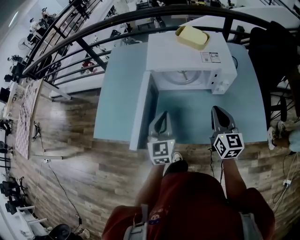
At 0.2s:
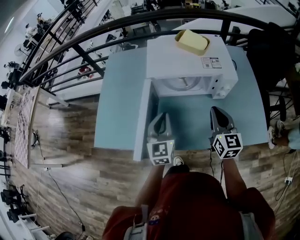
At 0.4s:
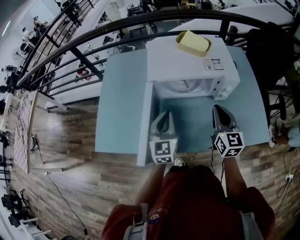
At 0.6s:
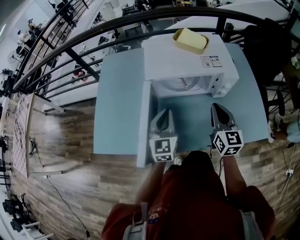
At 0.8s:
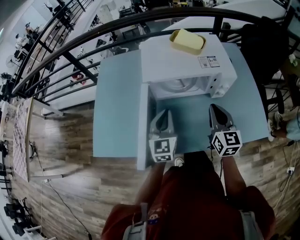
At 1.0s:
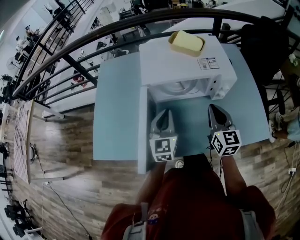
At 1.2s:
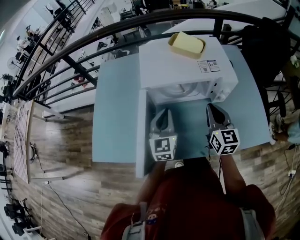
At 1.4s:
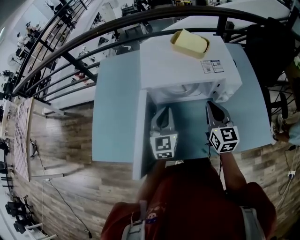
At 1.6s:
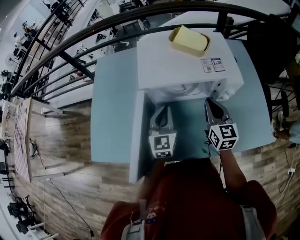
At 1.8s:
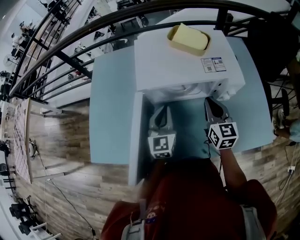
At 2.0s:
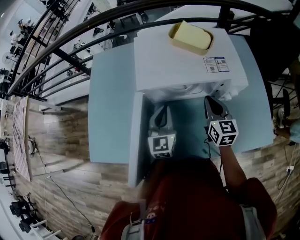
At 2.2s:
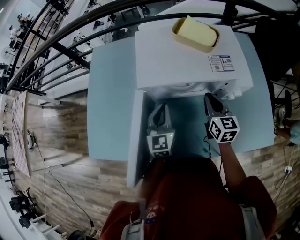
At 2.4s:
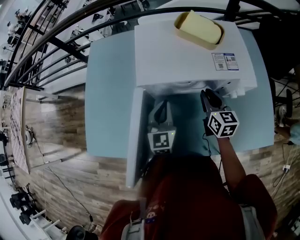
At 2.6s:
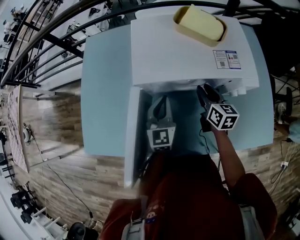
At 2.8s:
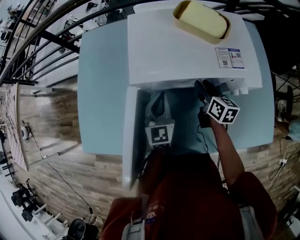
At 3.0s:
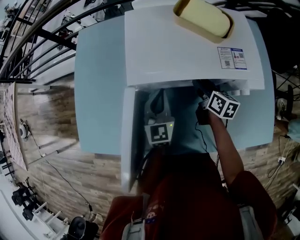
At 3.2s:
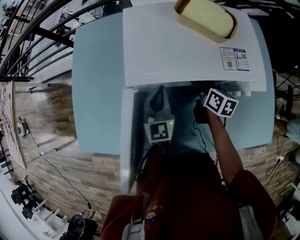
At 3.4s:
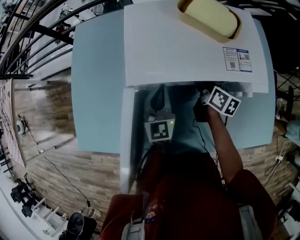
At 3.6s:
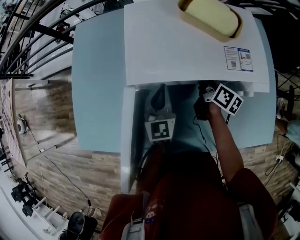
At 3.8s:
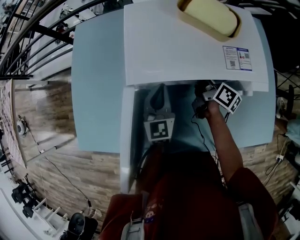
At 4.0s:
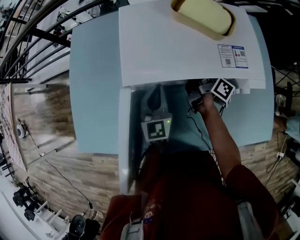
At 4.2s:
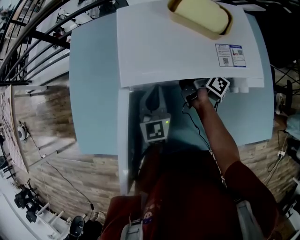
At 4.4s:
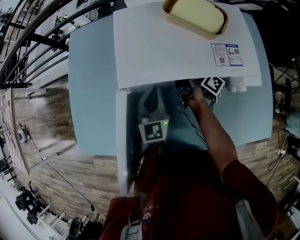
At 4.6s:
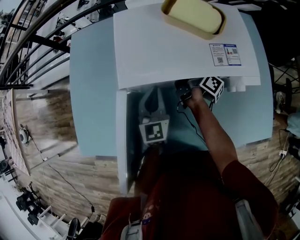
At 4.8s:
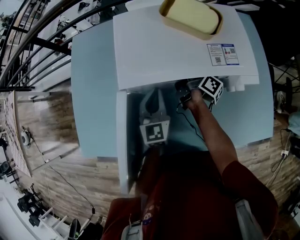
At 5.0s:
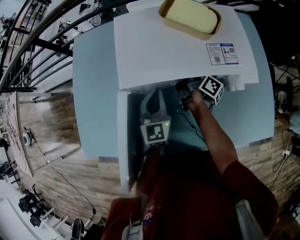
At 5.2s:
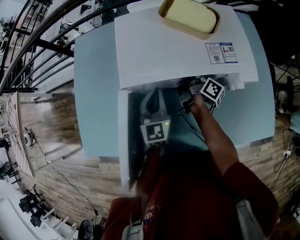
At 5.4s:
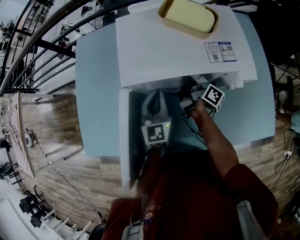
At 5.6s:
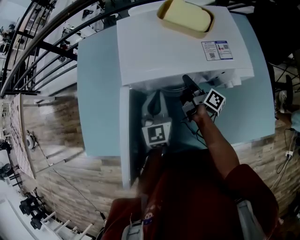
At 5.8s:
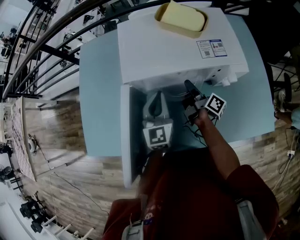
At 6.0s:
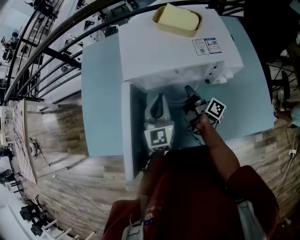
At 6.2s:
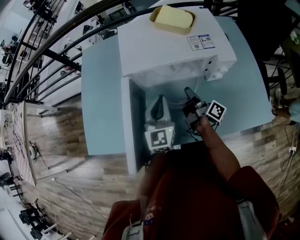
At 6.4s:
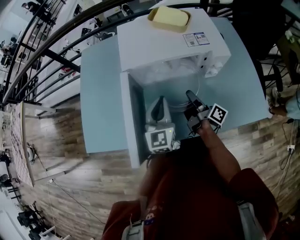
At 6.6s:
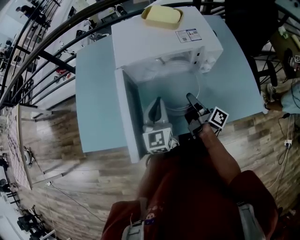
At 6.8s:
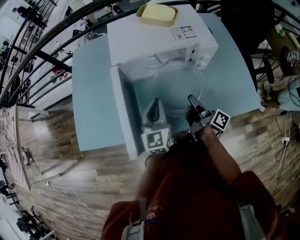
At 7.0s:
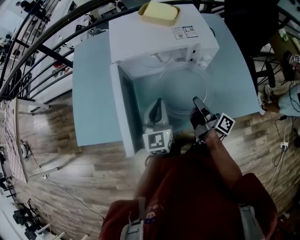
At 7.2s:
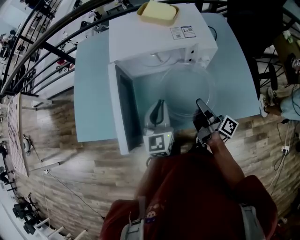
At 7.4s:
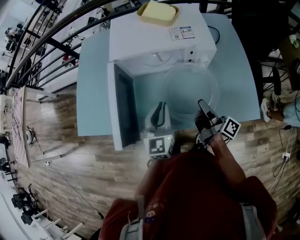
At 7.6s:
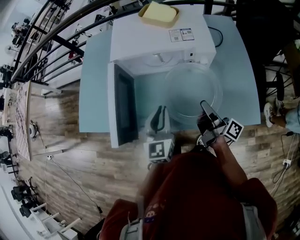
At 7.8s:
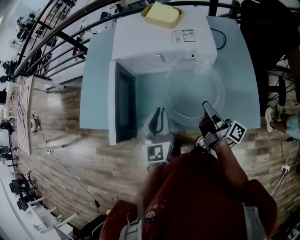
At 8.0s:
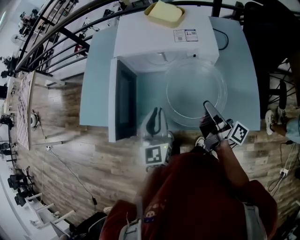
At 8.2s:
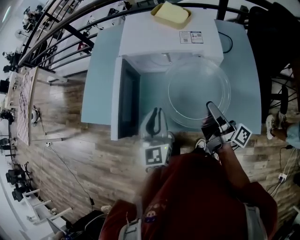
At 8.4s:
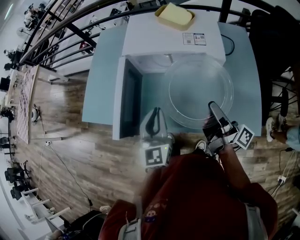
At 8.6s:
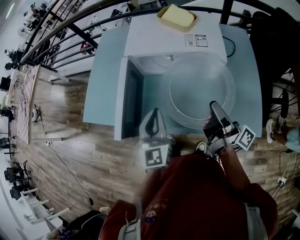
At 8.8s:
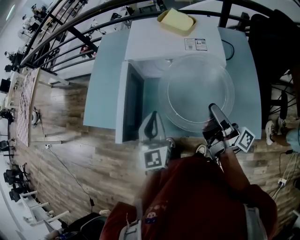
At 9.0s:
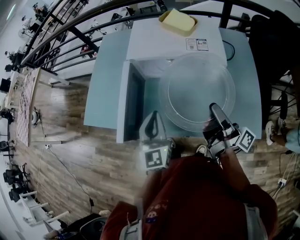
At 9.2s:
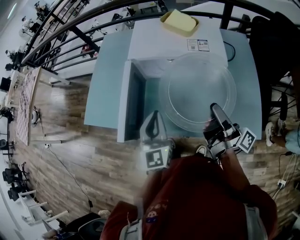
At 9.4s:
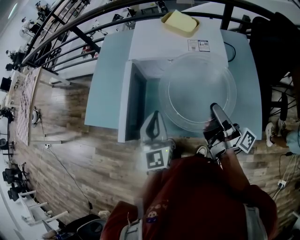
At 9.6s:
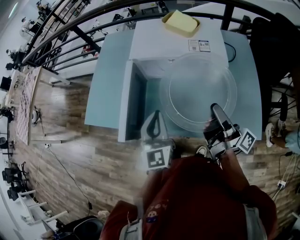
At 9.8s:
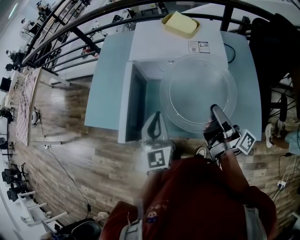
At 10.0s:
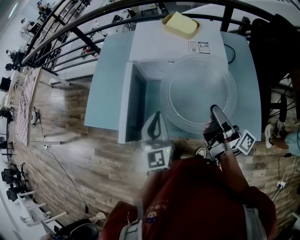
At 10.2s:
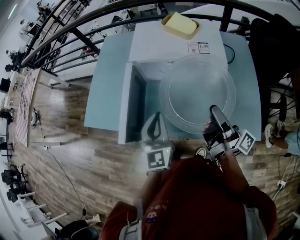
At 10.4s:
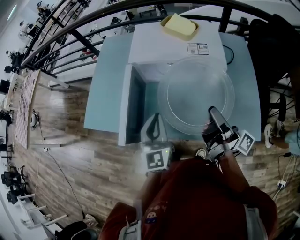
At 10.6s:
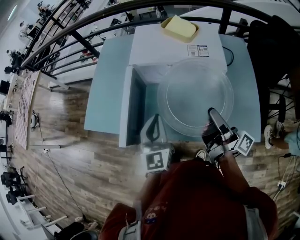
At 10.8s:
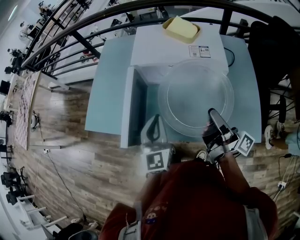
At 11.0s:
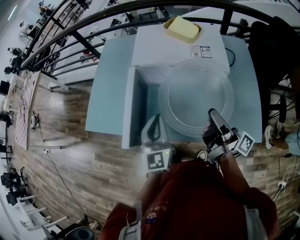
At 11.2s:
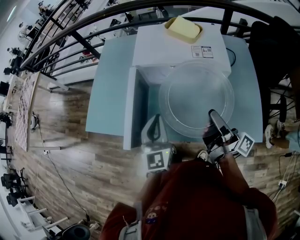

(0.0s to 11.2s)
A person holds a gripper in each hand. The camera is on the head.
0.0s - 1.6s: The two grippers go roughly 15 cm forward.
1.6s - 3.2s: The left gripper shifts about 15 cm forward and downward, while the right gripper is displaced downward and forward by roughly 20 cm, rotates some 40 degrees, and opens.
3.2s - 4.8s: The right gripper is displaced forward by approximately 5 cm, rotates around the line of its fingers by some 40 degrees, clockwise from behind, and closes.
4.8s - 6.4s: The left gripper heads backward and upward, covering approximately 15 cm. Meanwhile the right gripper goes roughly 25 cm backward.
6.4s - 8.0s: The right gripper moves to the right, backward and upward, some 20 cm. The left gripper shifts roughly 15 cm backward and to the right.
8.0s - 9.6s: The right gripper moves upward, roughly 10 cm, while the left gripper shifts by some 5 cm.
9.6s - 11.2s: The grippers move only a little.

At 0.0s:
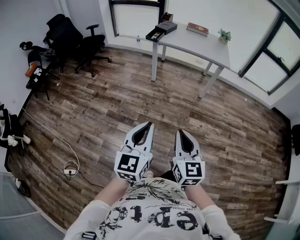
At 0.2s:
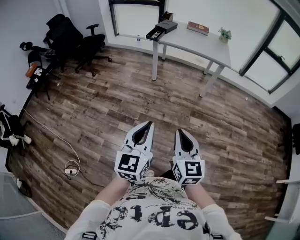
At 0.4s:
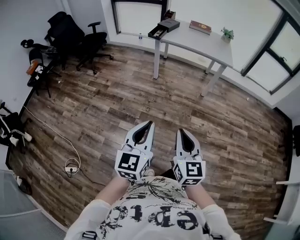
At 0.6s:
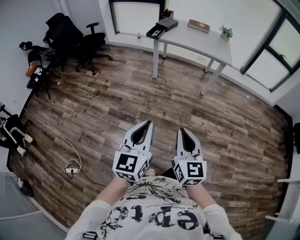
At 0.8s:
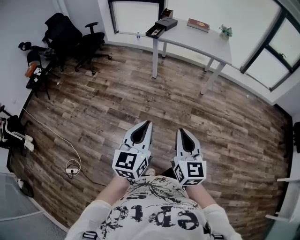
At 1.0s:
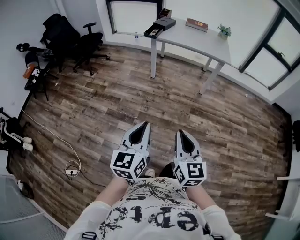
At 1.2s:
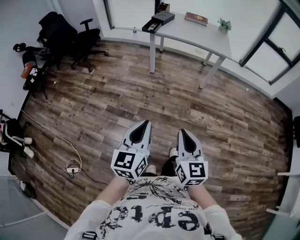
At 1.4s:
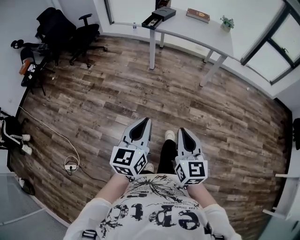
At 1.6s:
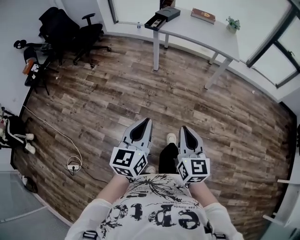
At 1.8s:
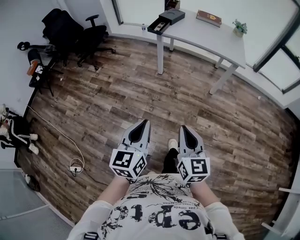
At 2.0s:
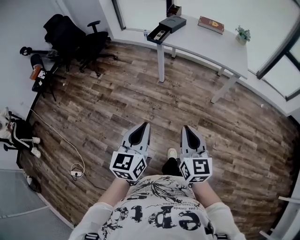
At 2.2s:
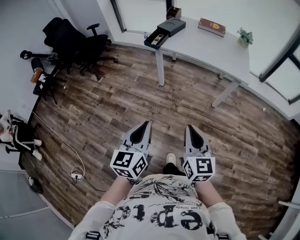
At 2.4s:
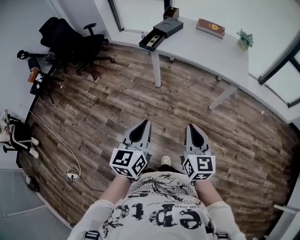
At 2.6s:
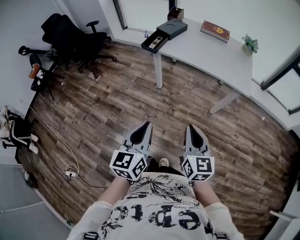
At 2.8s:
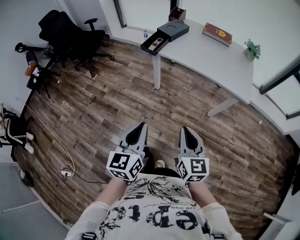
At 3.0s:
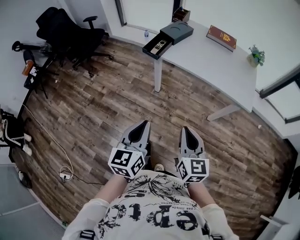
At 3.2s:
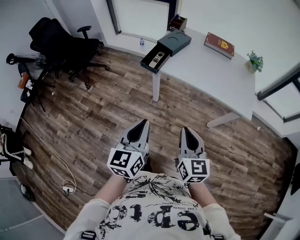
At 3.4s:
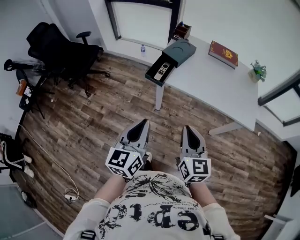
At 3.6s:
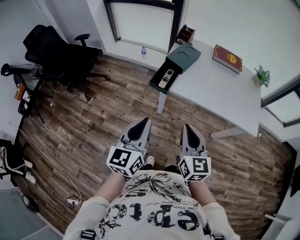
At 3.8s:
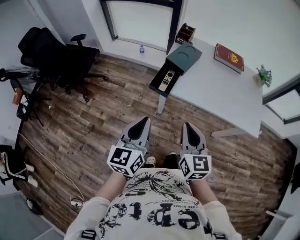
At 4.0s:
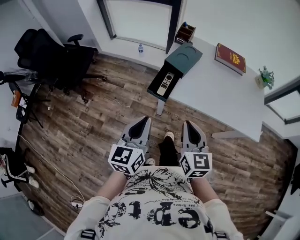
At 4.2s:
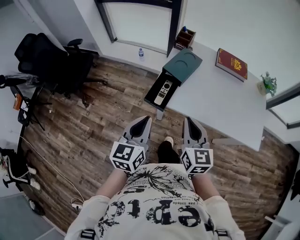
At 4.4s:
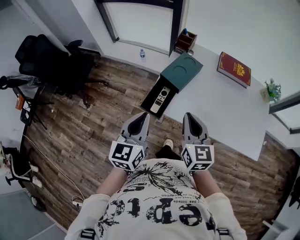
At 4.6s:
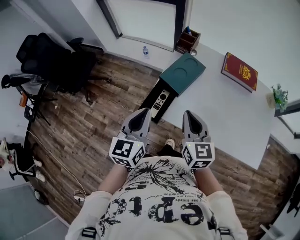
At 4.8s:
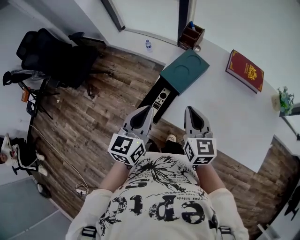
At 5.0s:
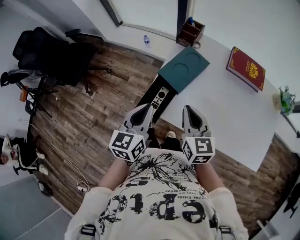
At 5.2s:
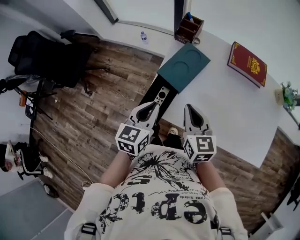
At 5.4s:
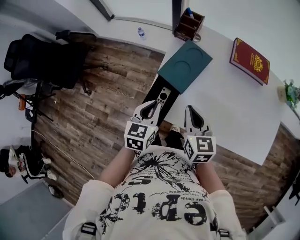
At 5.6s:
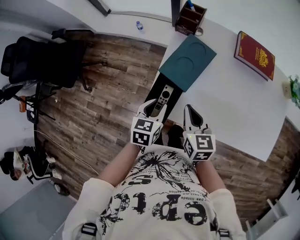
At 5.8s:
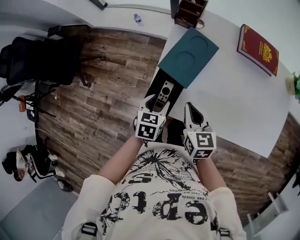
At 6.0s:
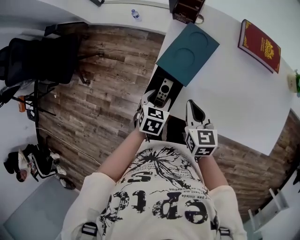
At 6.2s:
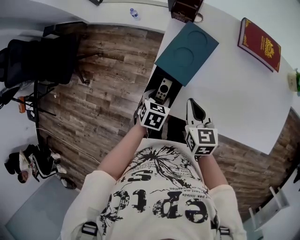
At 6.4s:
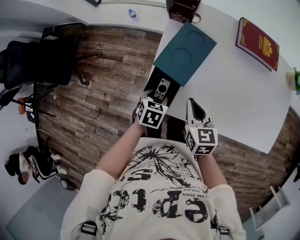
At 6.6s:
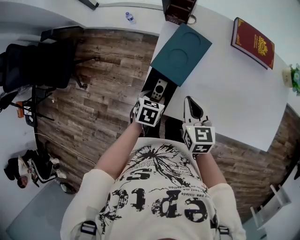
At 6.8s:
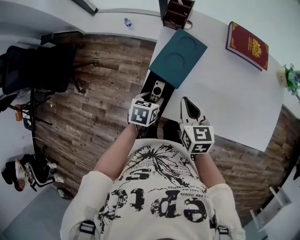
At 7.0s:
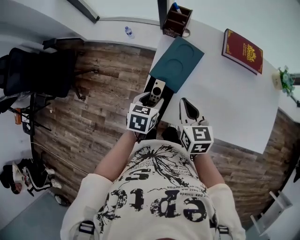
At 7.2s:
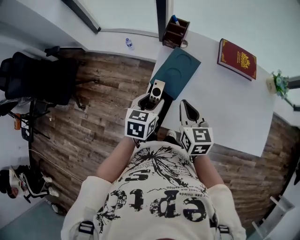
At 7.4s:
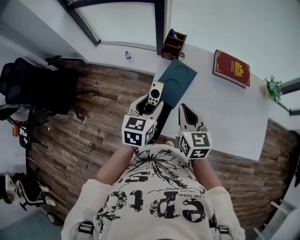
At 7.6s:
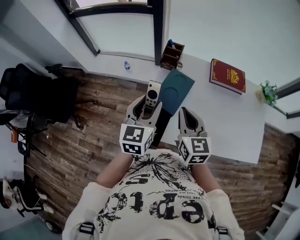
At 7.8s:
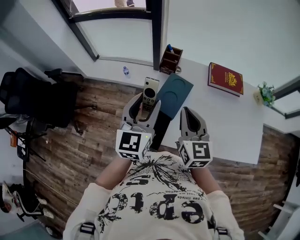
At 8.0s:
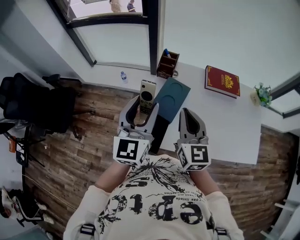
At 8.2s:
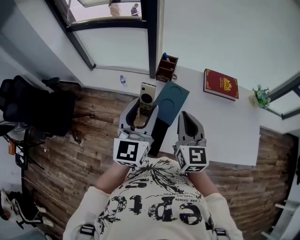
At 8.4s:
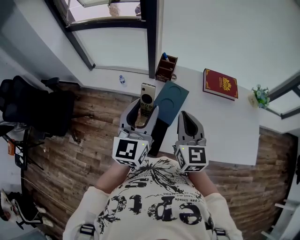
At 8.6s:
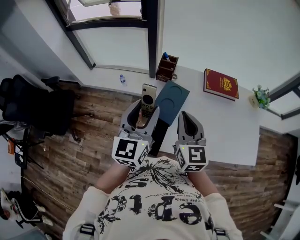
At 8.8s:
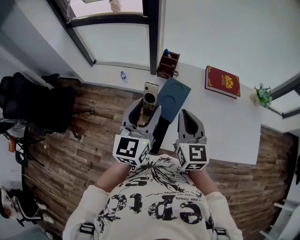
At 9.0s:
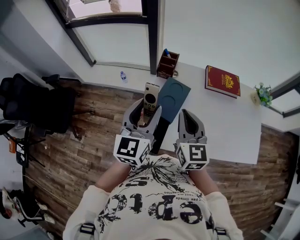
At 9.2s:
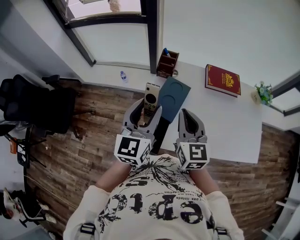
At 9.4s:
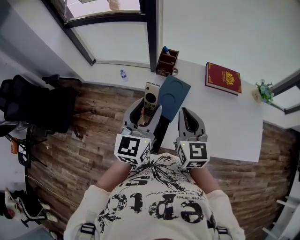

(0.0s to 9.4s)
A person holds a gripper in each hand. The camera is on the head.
0.0s - 1.6s: Both grippers move forward, roughly 10 cm.
1.6s - 3.2s: The two grippers travel together, forward, some 50 cm.
3.2s - 4.8s: The two grippers travel together, forward, some 50 cm.
4.8s - 6.2s: The left gripper goes about 25 cm downward, angles its fingers downward, by approximately 50 degrees, and opens. The right gripper travels downward by about 15 cm, and rotates some 20 degrees.
6.2s - 7.8s: The left gripper shifts some 35 cm upward, and tilts its fingers about 60 degrees upward, while the right gripper travels upward by some 20 cm, and changes its angle by roughly 30 degrees.
7.8s - 9.4s: The grippers stay close to where they were, moving slightly.

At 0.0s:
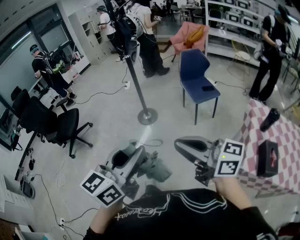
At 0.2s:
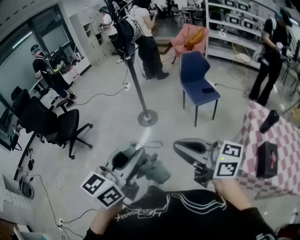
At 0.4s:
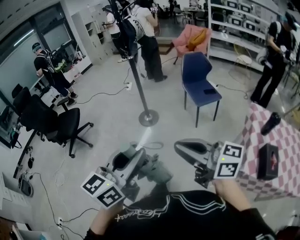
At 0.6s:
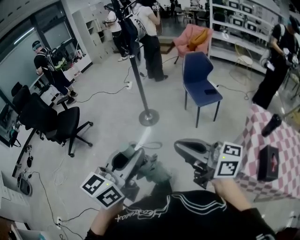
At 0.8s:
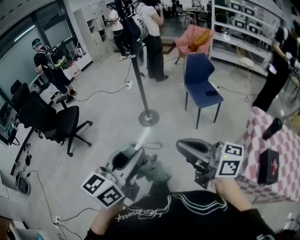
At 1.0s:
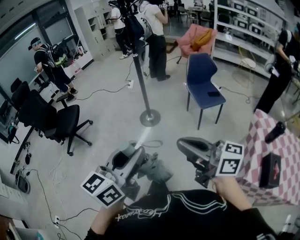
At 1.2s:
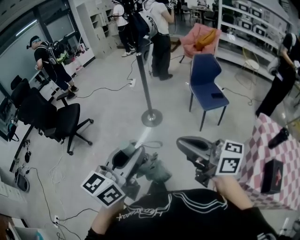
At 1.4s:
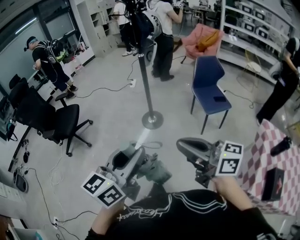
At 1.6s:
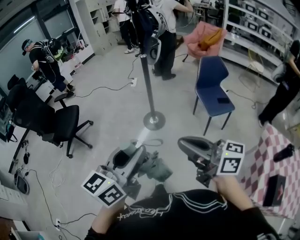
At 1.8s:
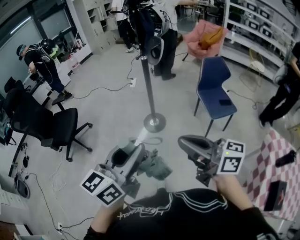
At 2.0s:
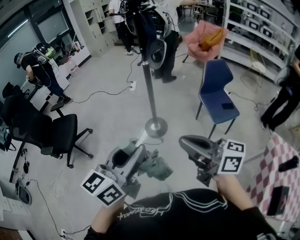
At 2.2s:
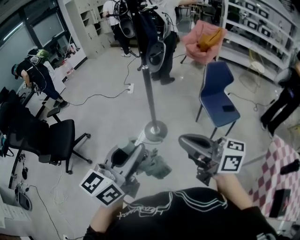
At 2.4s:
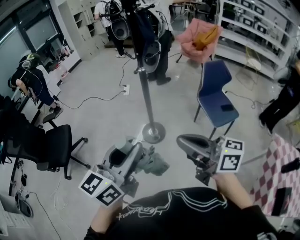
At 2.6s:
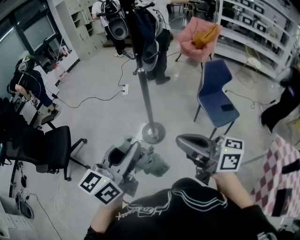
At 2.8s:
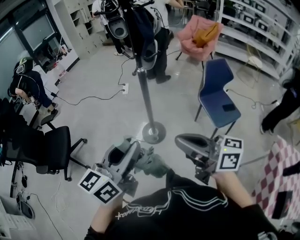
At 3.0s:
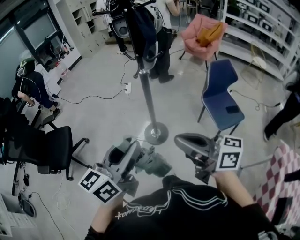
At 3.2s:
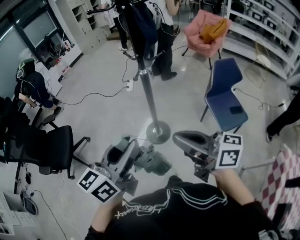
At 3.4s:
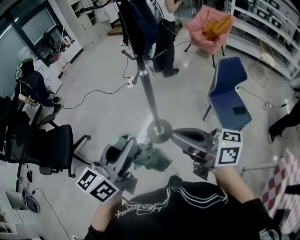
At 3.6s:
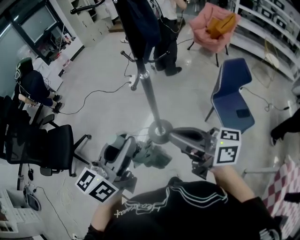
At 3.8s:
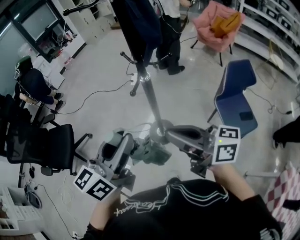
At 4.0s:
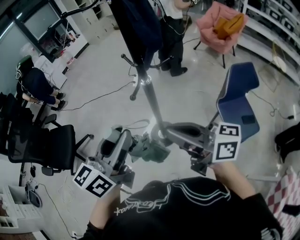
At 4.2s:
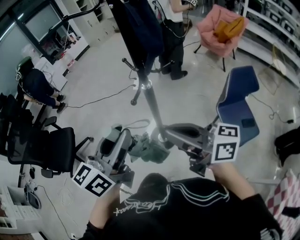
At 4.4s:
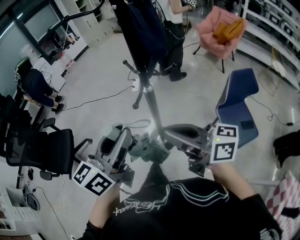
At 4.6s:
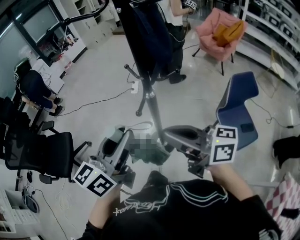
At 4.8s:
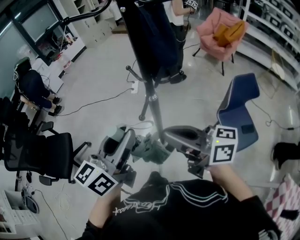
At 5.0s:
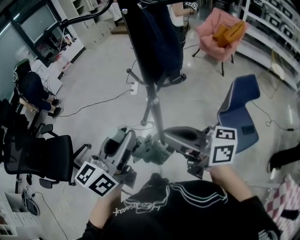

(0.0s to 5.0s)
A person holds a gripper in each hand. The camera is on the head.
0.0s - 1.6s: Both grippers move forward, about 20 cm.
1.6s - 3.4s: The grippers both shift forward by roughly 40 cm.
3.4s - 5.0s: The two grippers go some 20 cm forward.
